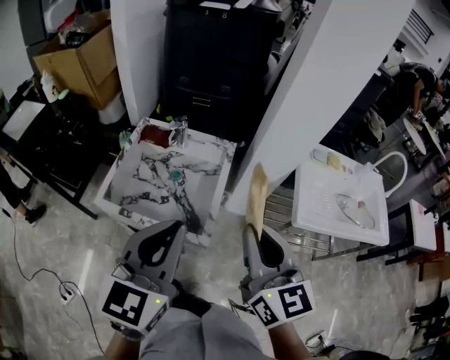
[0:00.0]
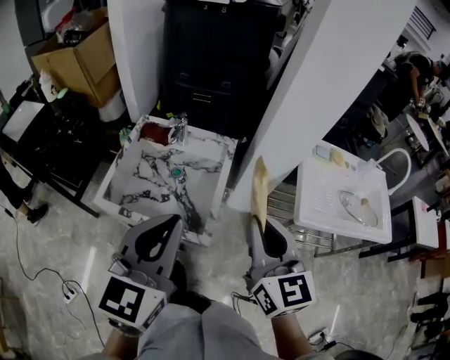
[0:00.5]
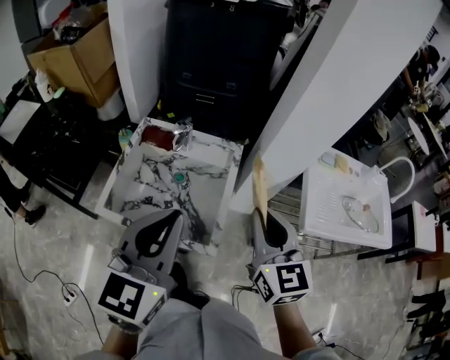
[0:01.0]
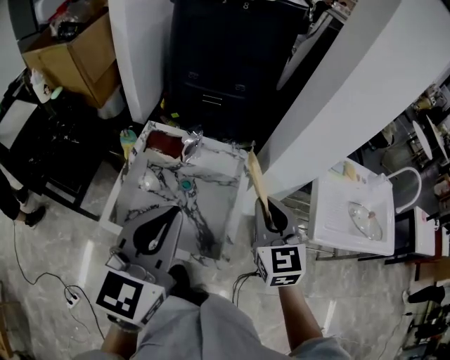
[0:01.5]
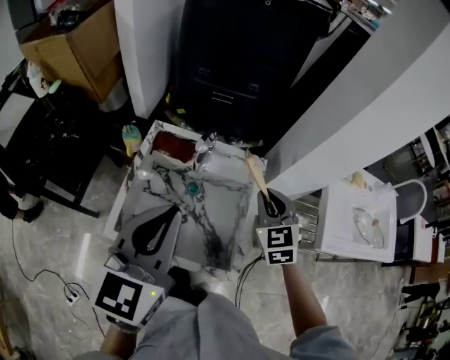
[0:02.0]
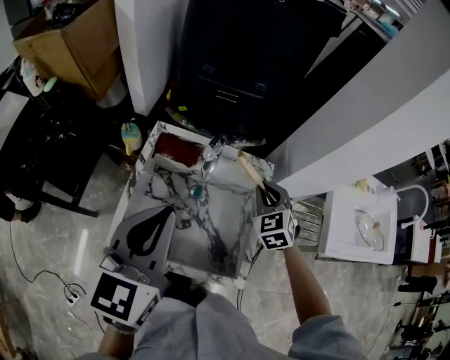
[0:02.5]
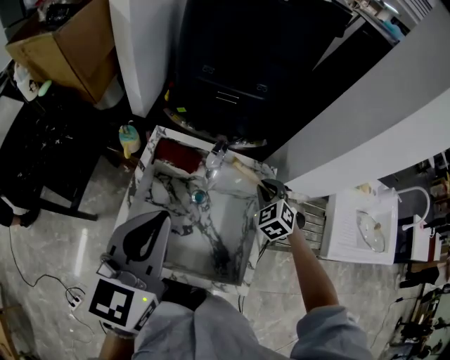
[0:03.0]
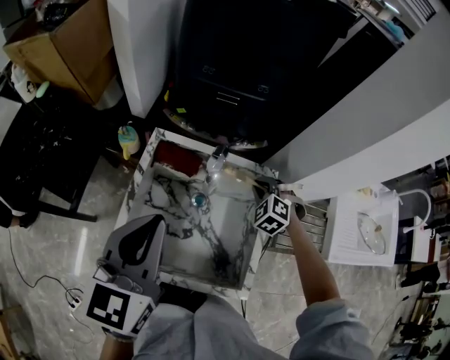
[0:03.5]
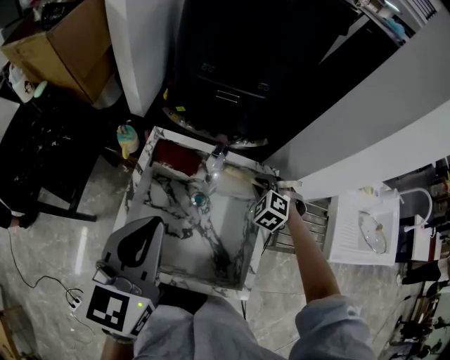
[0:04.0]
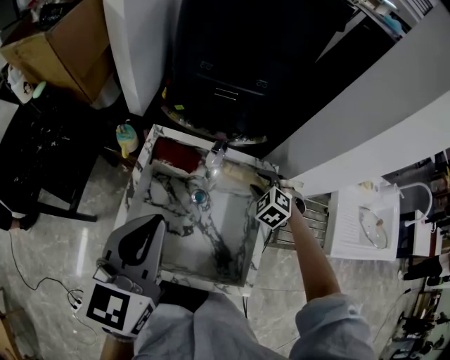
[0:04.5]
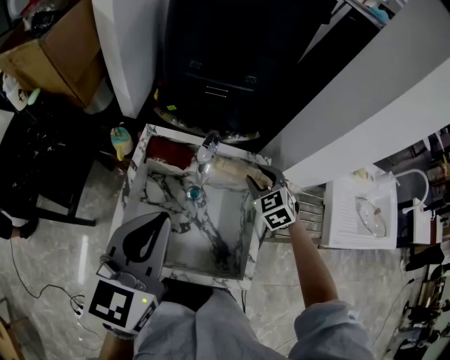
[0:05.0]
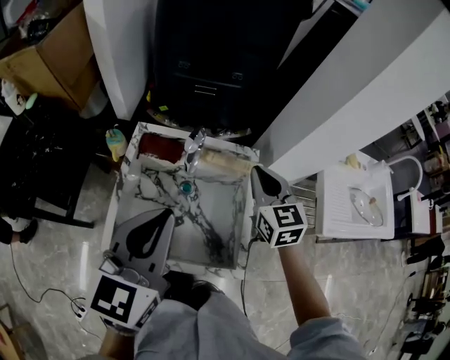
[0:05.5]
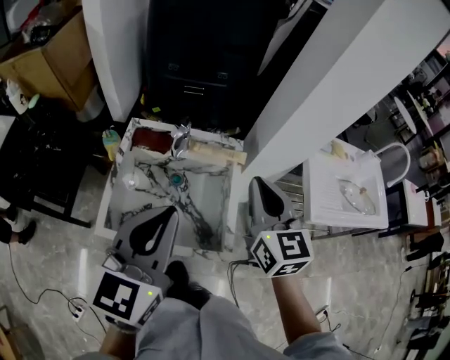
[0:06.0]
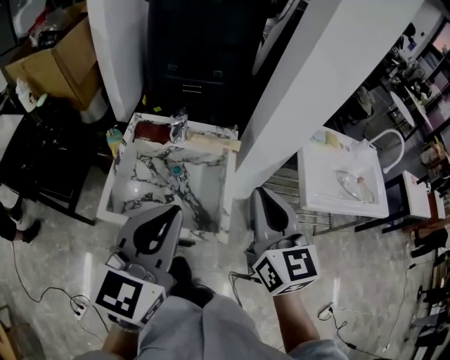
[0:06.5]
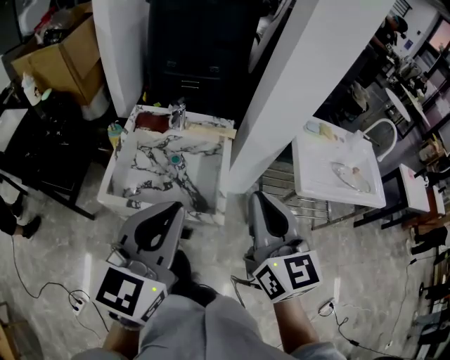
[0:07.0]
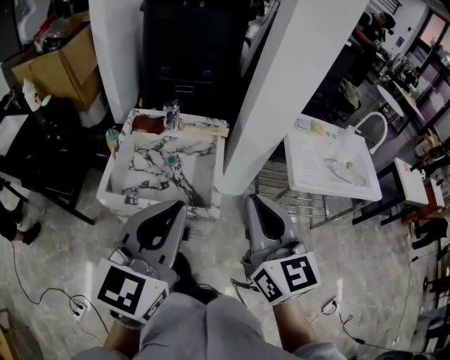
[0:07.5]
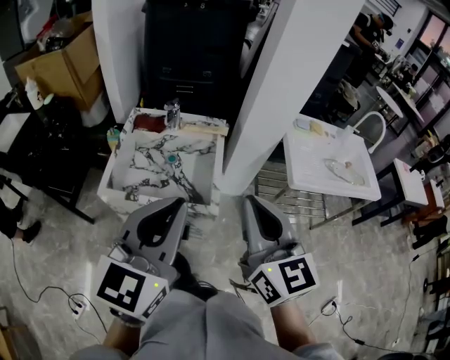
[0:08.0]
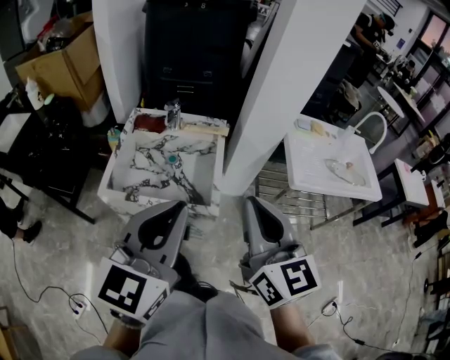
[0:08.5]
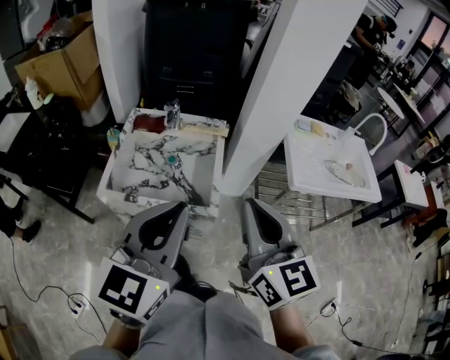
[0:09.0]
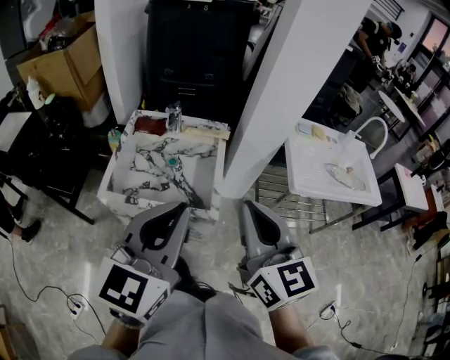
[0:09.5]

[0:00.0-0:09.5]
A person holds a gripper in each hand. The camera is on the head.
0:00.0 to 0:02.0: The right gripper shifts approximately 30 cm forward and downward, and swivels approximately 40 degrees, while the left gripper shifts roughly 25 cm forward and to the left.
0:02.0 to 0:04.0: The right gripper shifts roughly 20 cm downward and forward, and turns by about 50 degrees. The left gripper goes about 10 cm to the left and forward.
0:04.0 to 0:05.5: The left gripper goes roughly 5 cm to the right; the right gripper travels upward and backward by about 20 cm, twists approximately 50 degrees clockwise, seen from behind, and opens, then closes again.
0:05.5 to 0:07.5: The left gripper moves backward and to the right, roughly 30 cm, while the right gripper heads backward and upward, covering roughly 40 cm.
0:07.5 to 0:09.5: There are only small adjustments of the grippers.

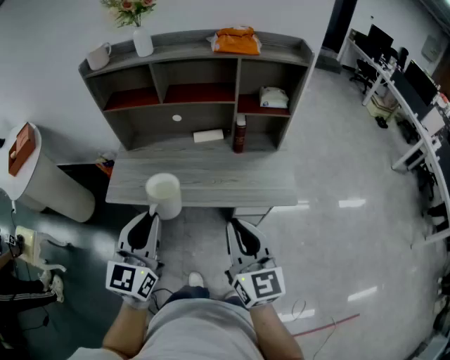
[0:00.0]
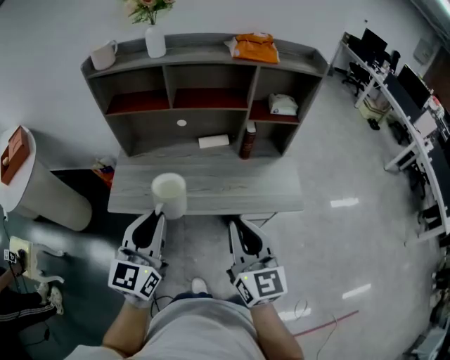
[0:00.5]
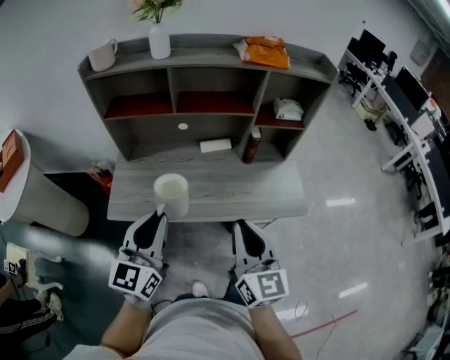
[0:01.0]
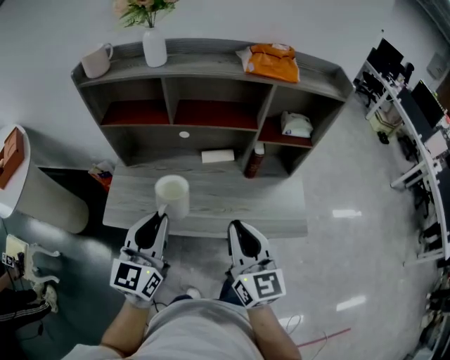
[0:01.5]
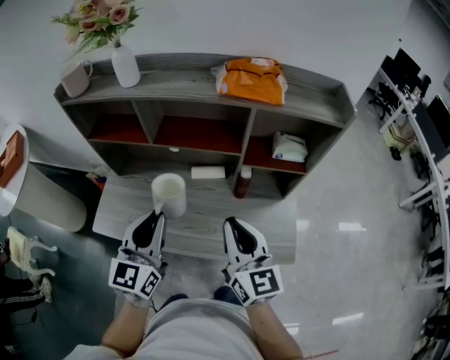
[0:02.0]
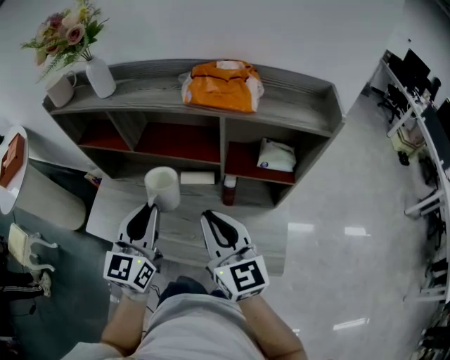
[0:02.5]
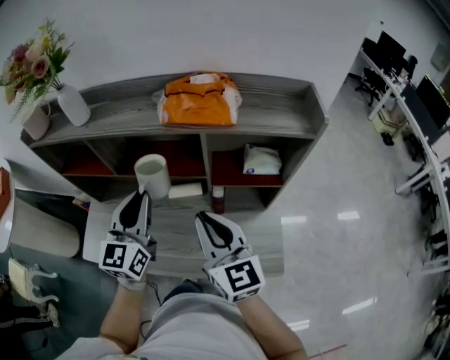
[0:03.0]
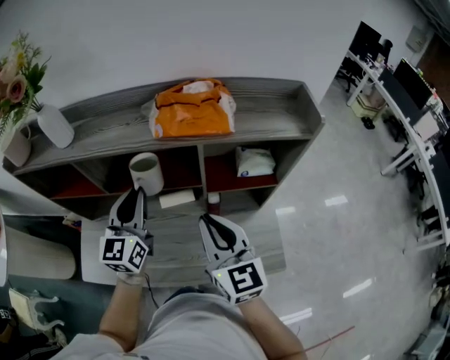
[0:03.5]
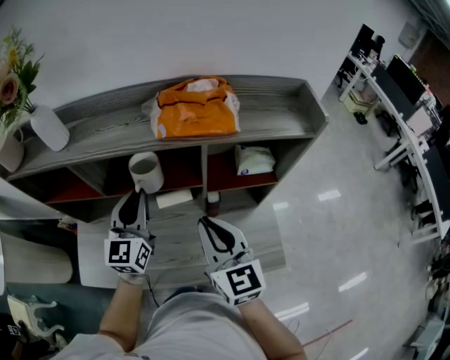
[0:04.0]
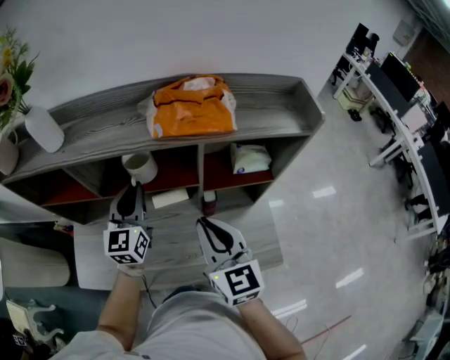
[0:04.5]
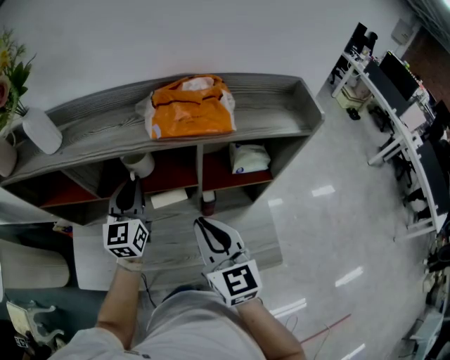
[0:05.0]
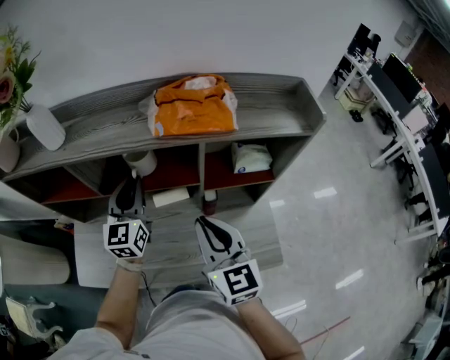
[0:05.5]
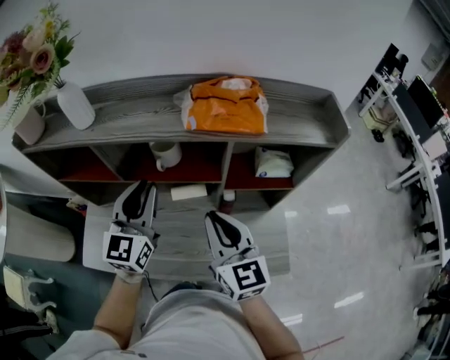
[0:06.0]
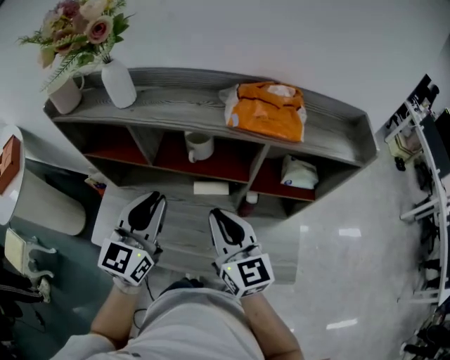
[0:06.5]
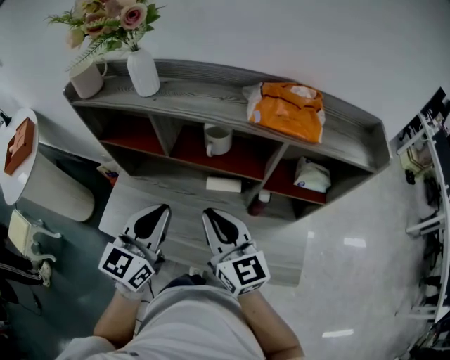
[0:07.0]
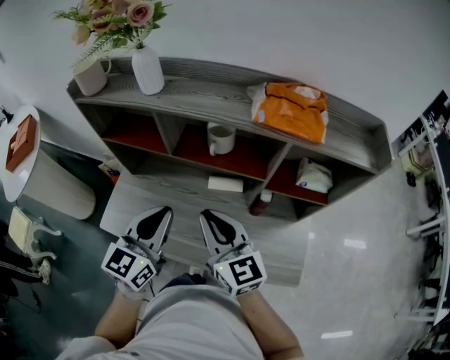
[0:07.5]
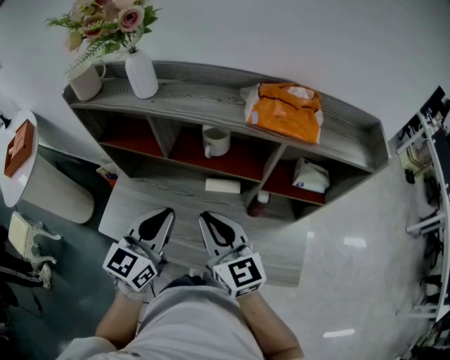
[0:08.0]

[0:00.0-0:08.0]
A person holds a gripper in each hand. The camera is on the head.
0:00.0 to 0:02.0: The grippers both shift forward by approximately 25 cm.
0:02.0 to 0:04.0: The right gripper shifts approximately 10 cm forward. Meanwhile the left gripper travels forward by approximately 20 cm.
0:04.0 to 0:06.0: The grippers move only a little.
0:06.0 to 0:08.0: The right gripper heads to the left, covering approximately 10 cm, and rotates roughly 20 degrees; the left gripper travels backward and to the left by about 10 cm.

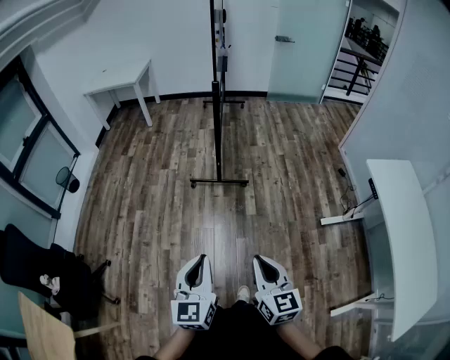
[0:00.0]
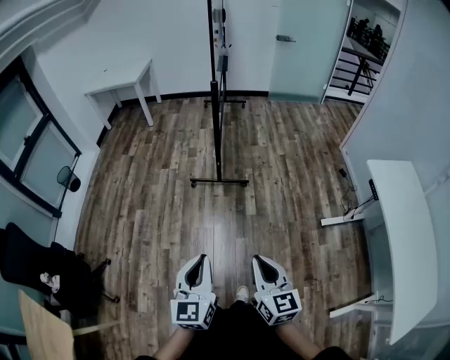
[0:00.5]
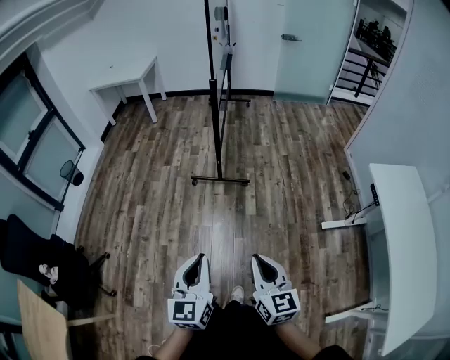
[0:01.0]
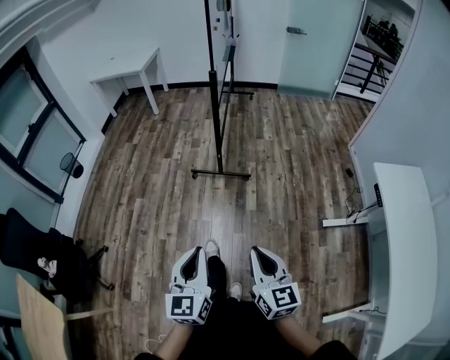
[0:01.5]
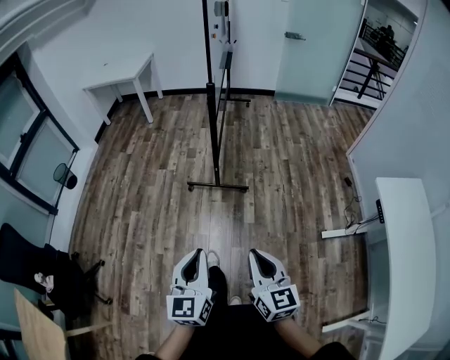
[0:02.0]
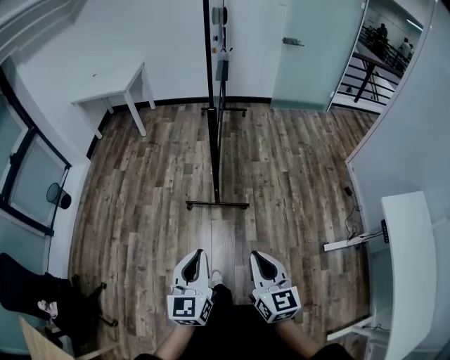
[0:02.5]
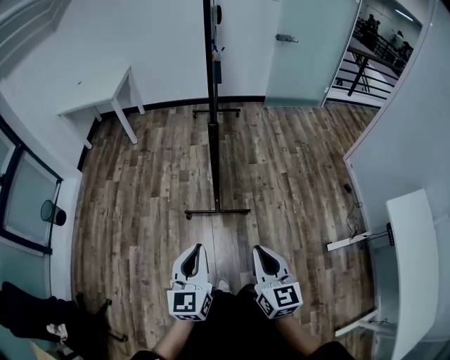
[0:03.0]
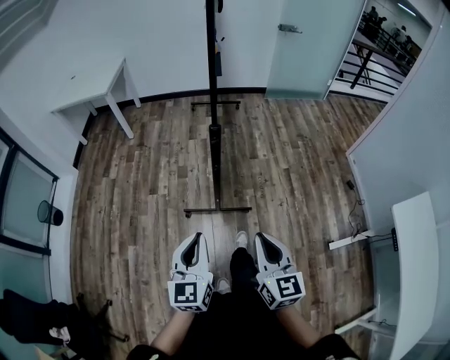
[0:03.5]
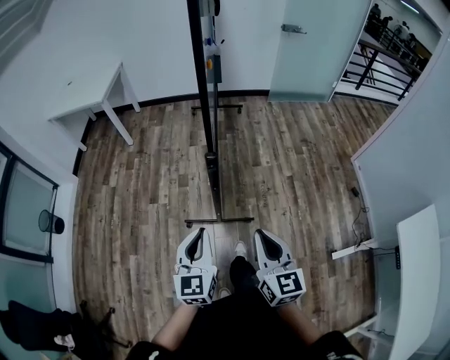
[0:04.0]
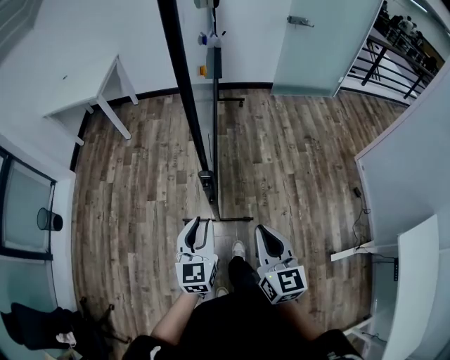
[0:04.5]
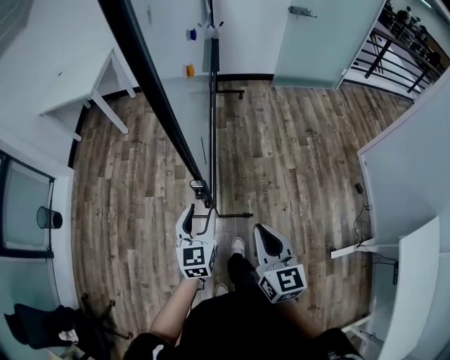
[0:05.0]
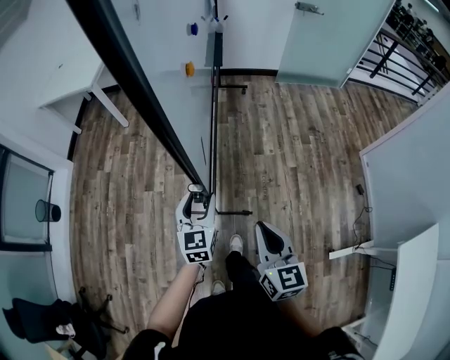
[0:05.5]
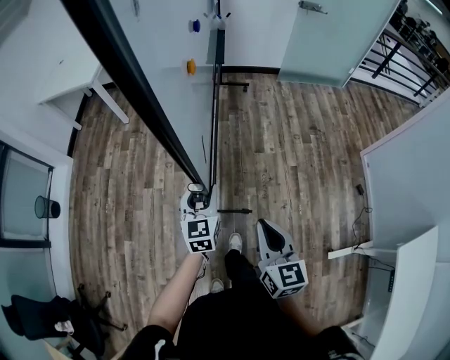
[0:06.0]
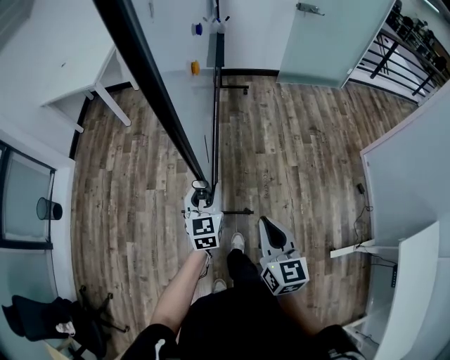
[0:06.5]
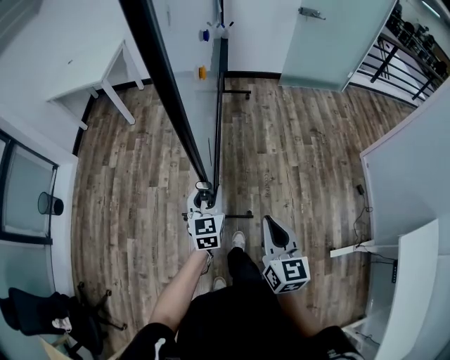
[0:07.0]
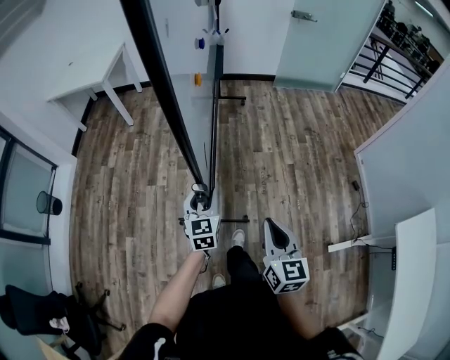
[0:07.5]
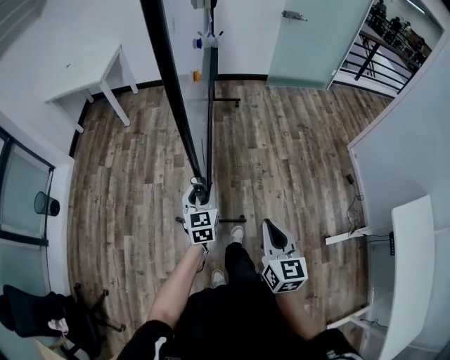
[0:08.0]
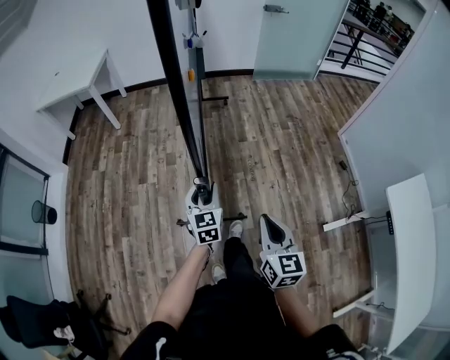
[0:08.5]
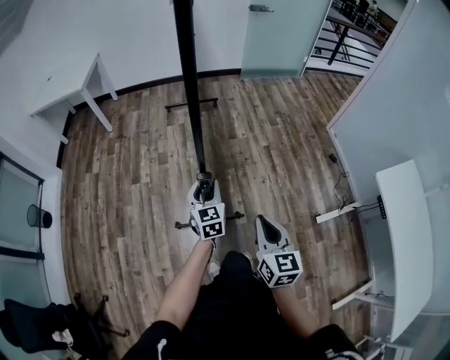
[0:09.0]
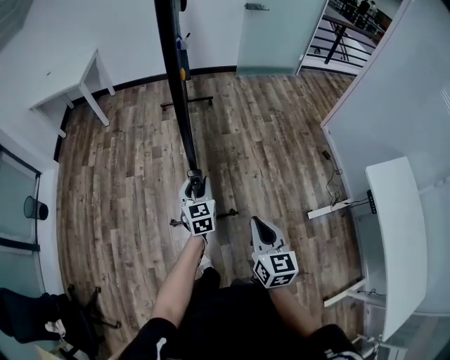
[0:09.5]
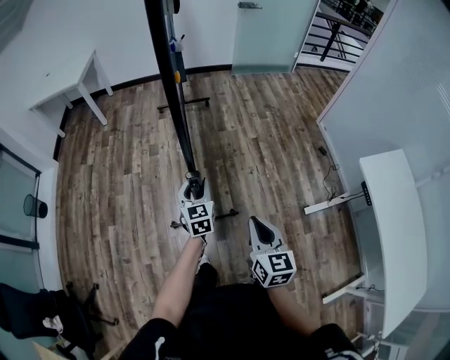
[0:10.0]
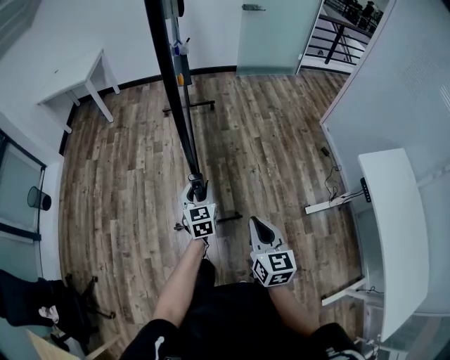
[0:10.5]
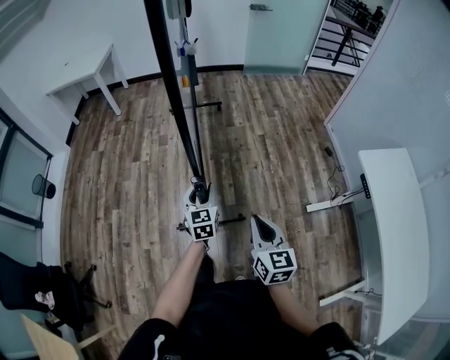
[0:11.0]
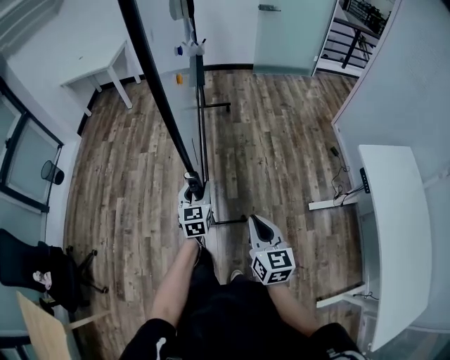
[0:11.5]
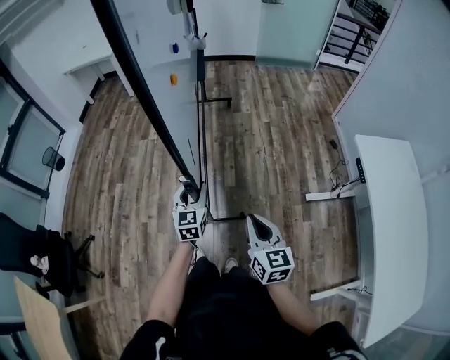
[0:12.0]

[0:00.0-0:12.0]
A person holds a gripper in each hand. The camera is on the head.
0:00.0 to 0:02.0: Both grippers travel together forward and to the right, approximately 15 cm.
0:02.0 to 0:04.0: The pair of grippers is taken forward, about 50 cm.
0:04.0 to 0:06.0: The left gripper moves forward and downward, some 25 cm, and opens its fingers; the right gripper shifts roughly 15 cm forward and to the right.
0:06.0 to 0:08.0: The two grippers go approximately 20 cm backward.
0:08.0 to 0:10.0: Both grippers travel together backward and to the right, roughly 25 cm.
0:10.0 to 0:12.0: Both grippers move backward, approximately 25 cm.
